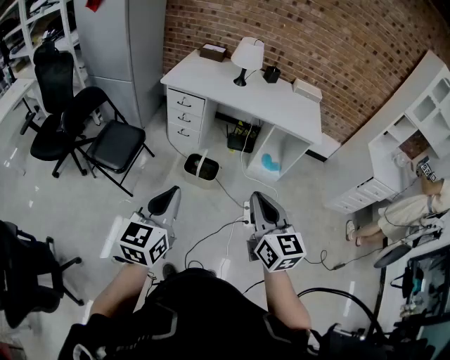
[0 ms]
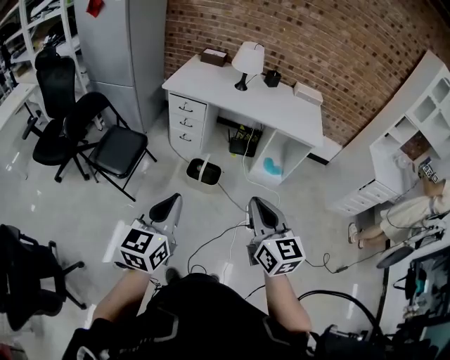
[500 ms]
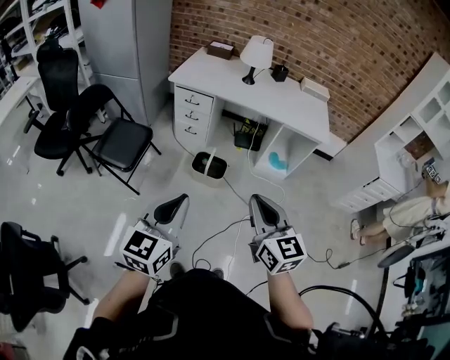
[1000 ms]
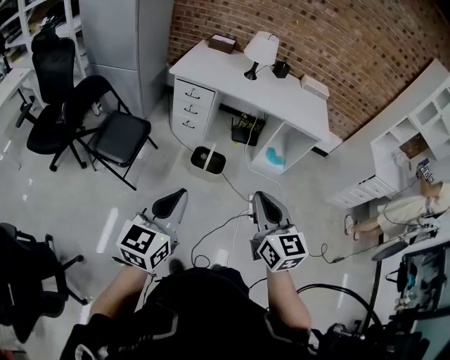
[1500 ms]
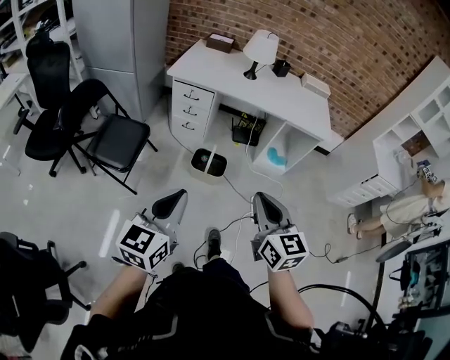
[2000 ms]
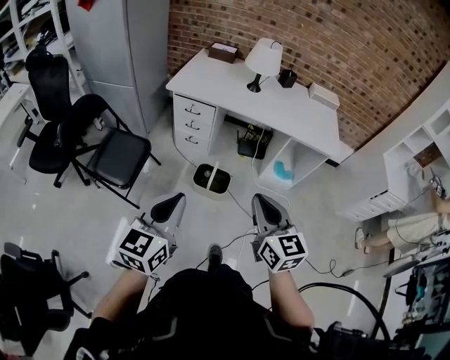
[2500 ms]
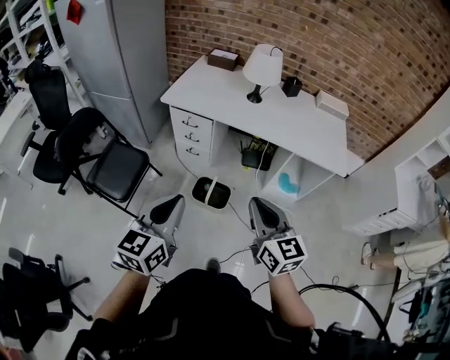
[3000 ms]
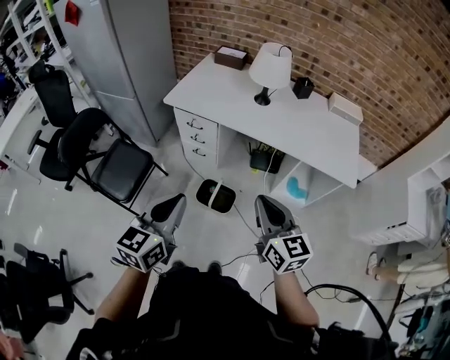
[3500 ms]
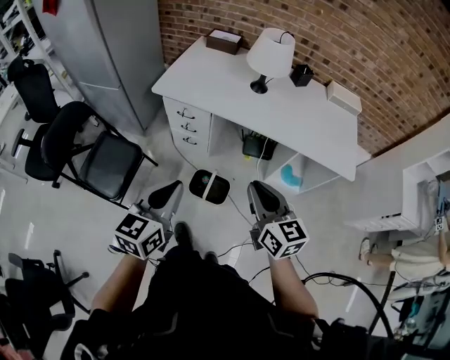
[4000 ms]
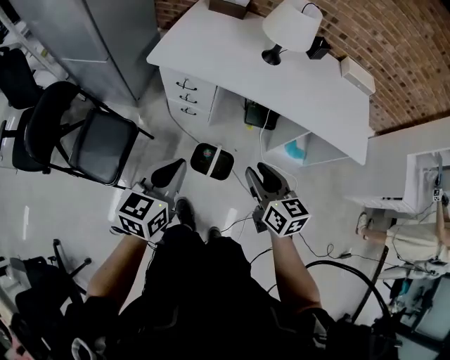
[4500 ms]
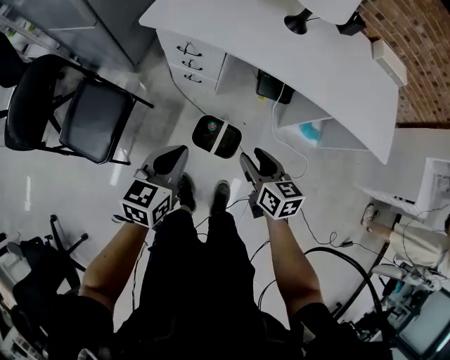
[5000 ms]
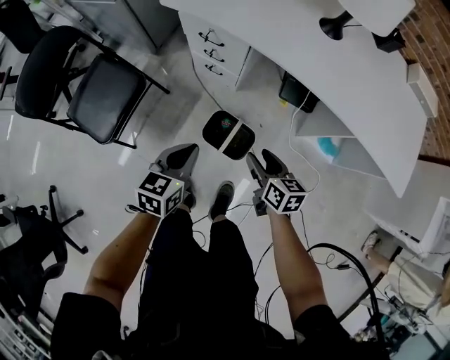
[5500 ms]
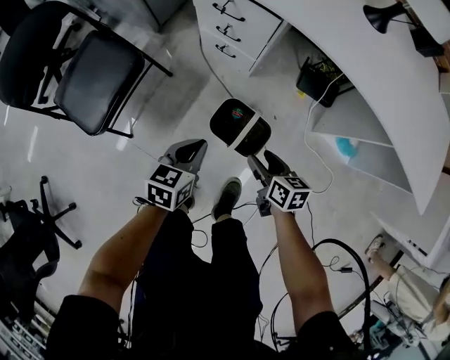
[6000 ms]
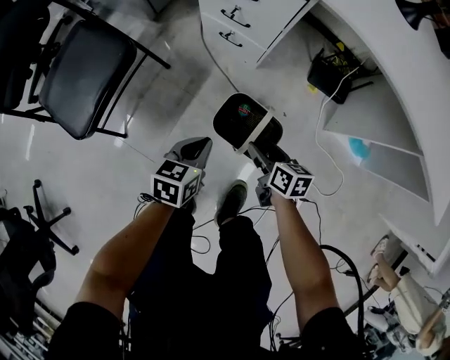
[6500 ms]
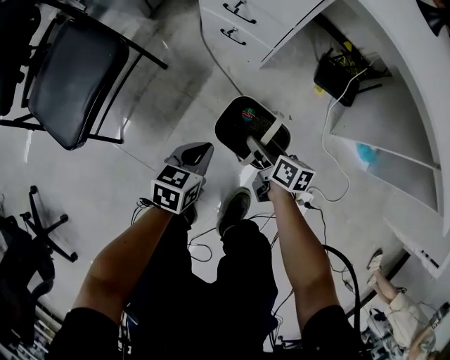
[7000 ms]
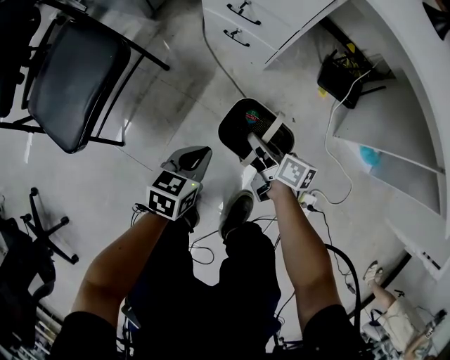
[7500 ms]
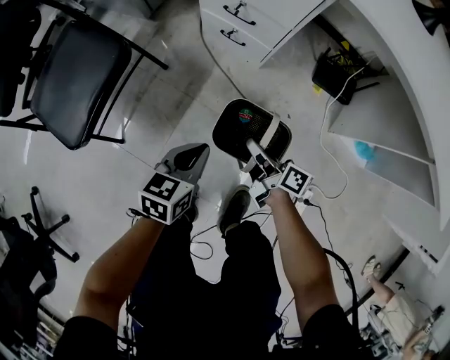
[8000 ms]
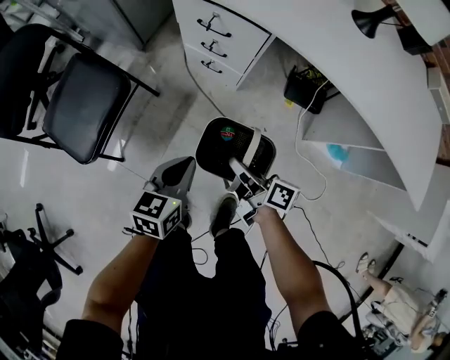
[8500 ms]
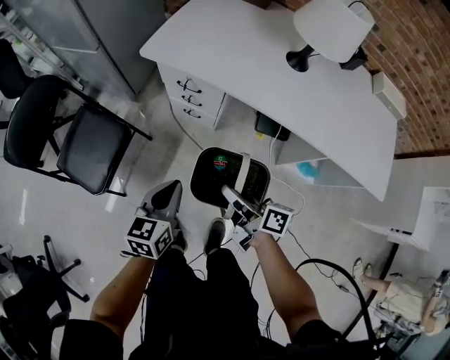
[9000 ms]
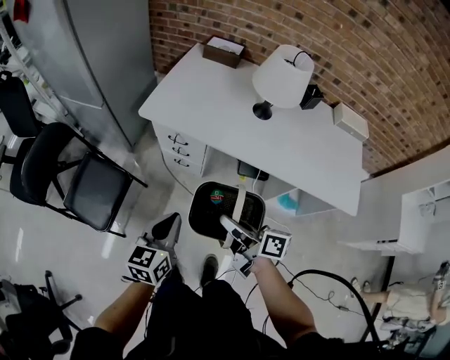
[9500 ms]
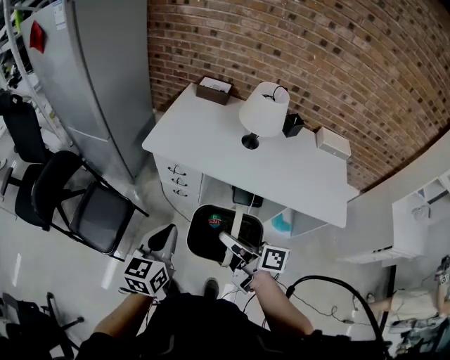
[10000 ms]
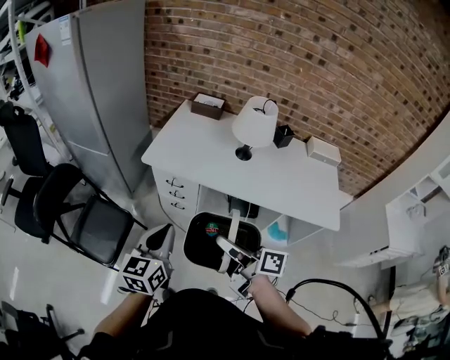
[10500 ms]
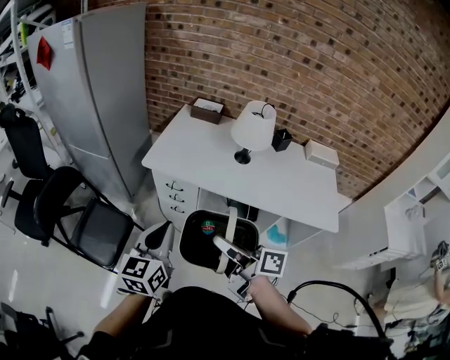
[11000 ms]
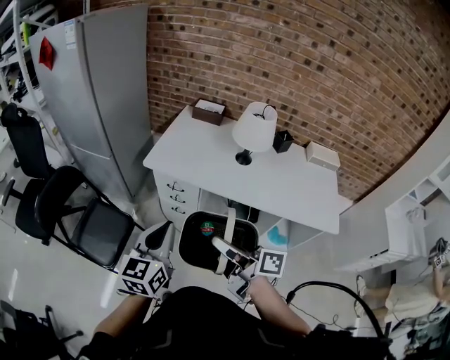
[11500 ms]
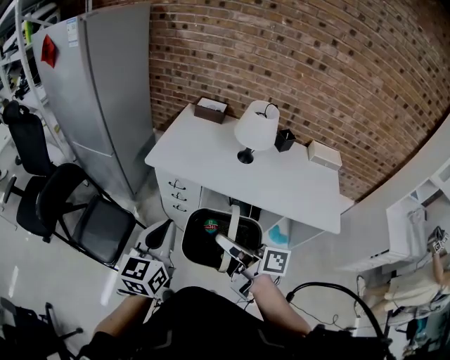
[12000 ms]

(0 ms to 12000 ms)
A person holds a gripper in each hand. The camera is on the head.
0 ms - 2000 ms: The two grippers go approximately 10 cm to the left.
2000 ms - 4000 ms: Both grippers move forward, some 35 cm.
4000 ms - 6000 ms: The grippers both shift downward by approximately 50 cm. The left gripper turns by some 30 degrees. The right gripper turns by roughly 40 degrees, and opens its fingers.
6000 ms - 8000 ms: The left gripper goes some 10 cm downward. The right gripper travels downward, to the left and forward by roughly 15 cm, rotates about 40 degrees, and closes.
8000 ms - 10000 ms: Both grippers move upward, roughly 60 cm. The left gripper rotates approximately 30 degrees.
10000 ms - 12000 ms: Both grippers travel together upward, approximately 10 cm.

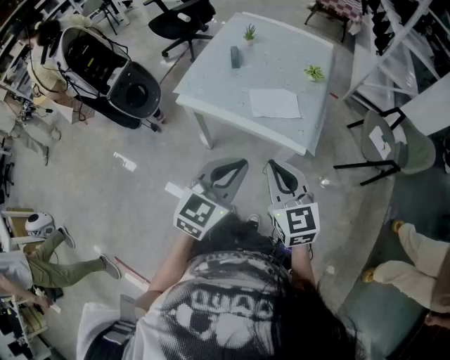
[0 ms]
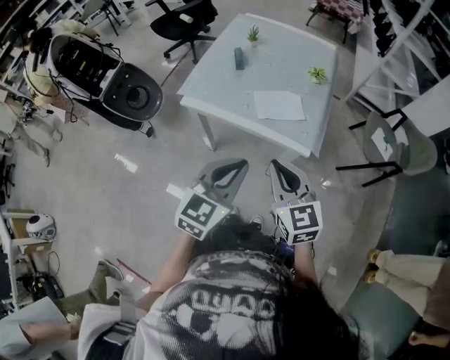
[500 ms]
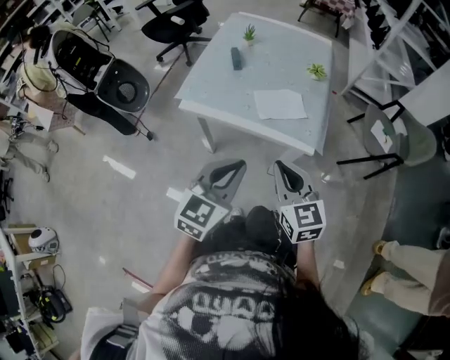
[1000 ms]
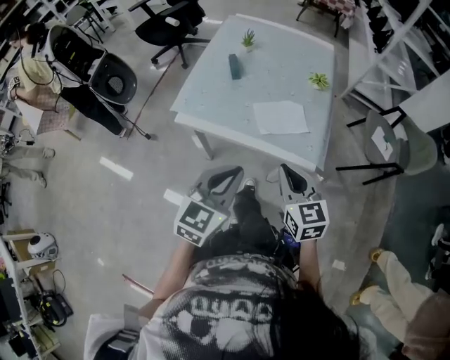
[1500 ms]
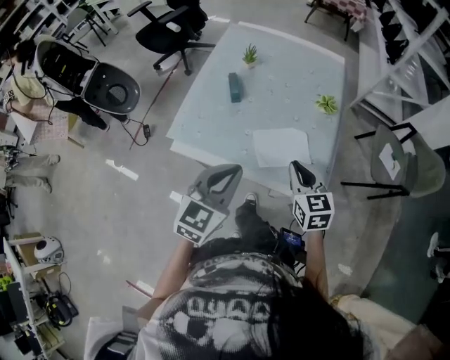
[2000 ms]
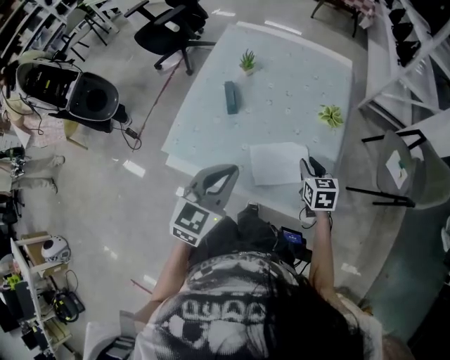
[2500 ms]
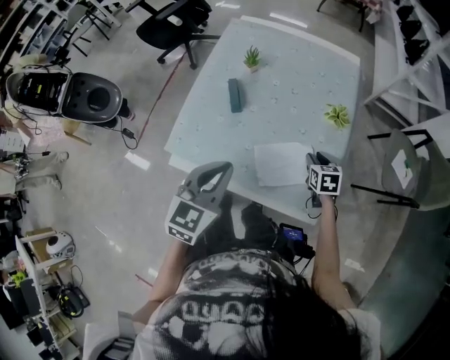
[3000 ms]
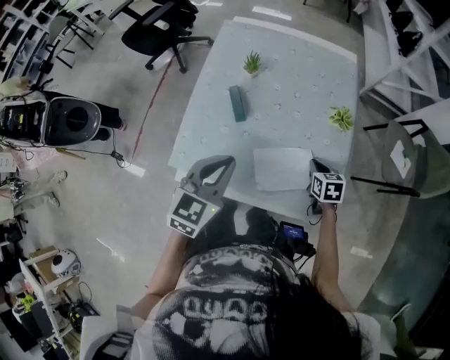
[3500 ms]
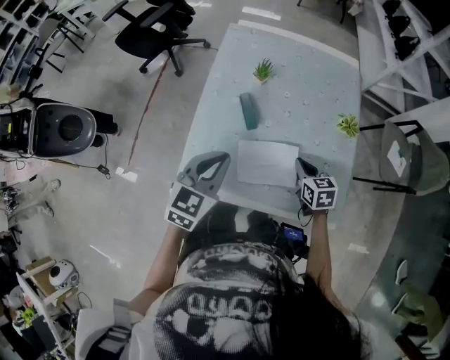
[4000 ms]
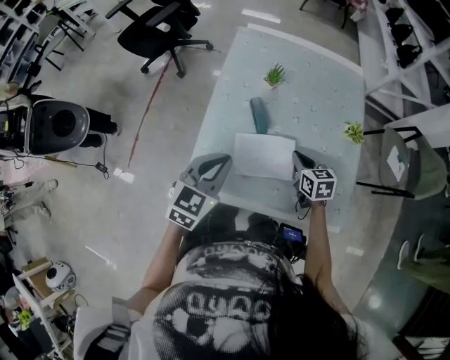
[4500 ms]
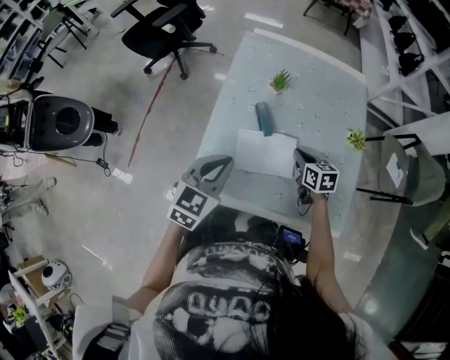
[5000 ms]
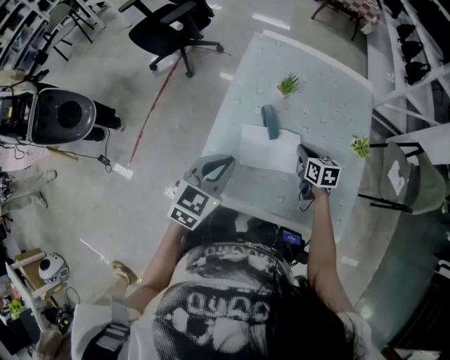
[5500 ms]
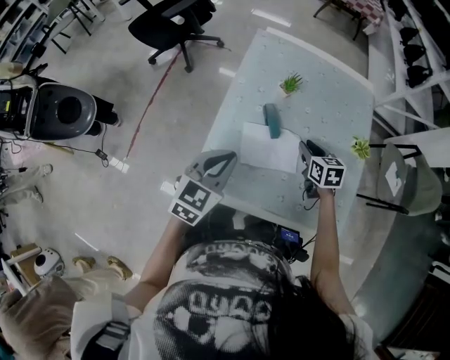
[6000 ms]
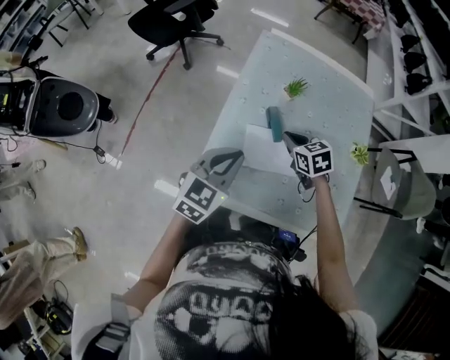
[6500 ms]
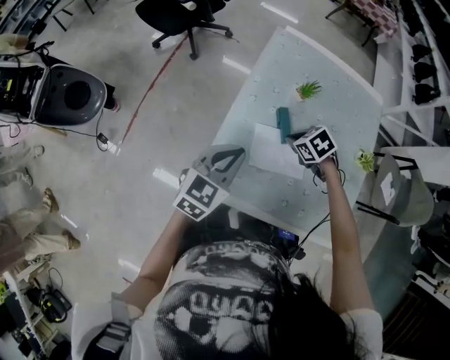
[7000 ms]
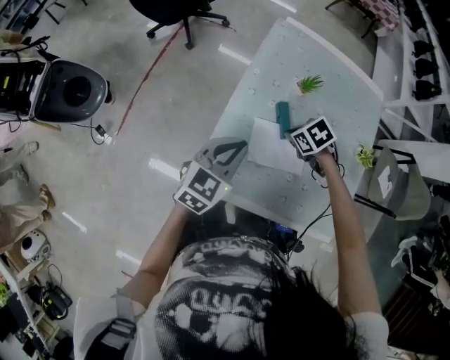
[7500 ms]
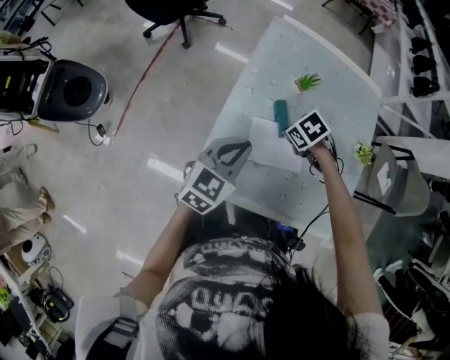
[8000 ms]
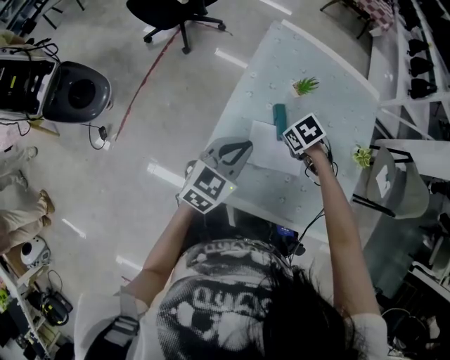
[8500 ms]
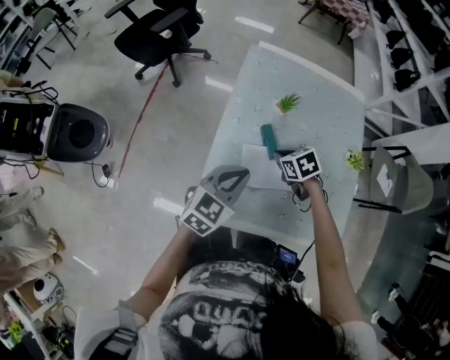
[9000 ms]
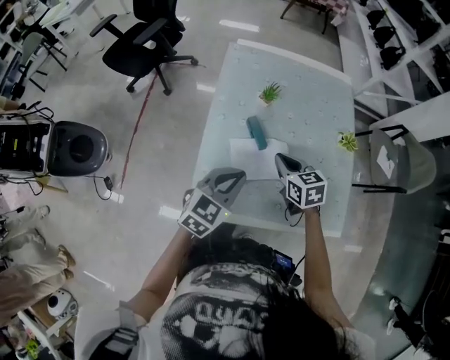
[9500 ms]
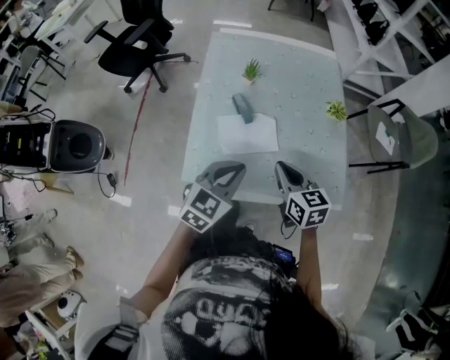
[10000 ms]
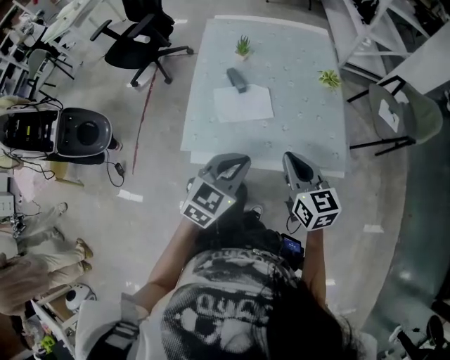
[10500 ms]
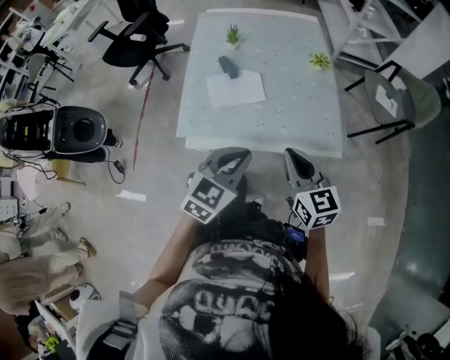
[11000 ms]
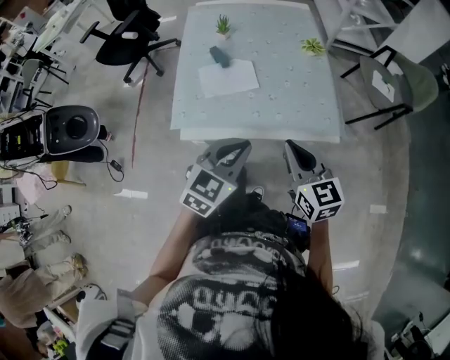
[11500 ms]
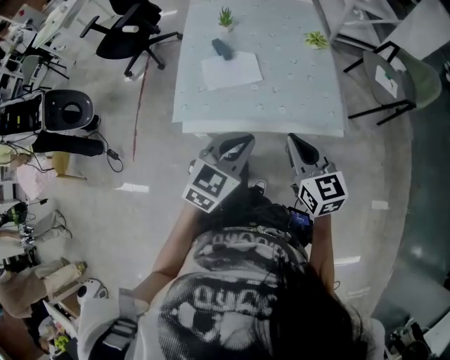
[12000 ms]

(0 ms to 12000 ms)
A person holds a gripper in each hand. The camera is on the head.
0 ms - 2000 ms: The left gripper shifts roughly 20 cm forward, while the right gripper goes roughly 30 cm forward and downward.
2000 ms - 4000 ms: The left gripper shifts roughly 25 cm forward and to the left; the right gripper goes approximately 20 cm forward, downward and to the left, and opens, then closes once more.
4000 ms - 6000 ms: The left gripper shifts approximately 5 cm to the left. Meanwhile the right gripper is displaced forward and to the left by some 10 cm, and opens its fingers.
6000 ms - 8000 ms: The right gripper moves some 10 cm, tilts its fingers about 30 degrees downward, and closes.
8000 ms - 10000 ms: The left gripper moves about 15 cm. Meanwhile the right gripper ends up approximately 25 cm from where it was, and tips its fingers upward by some 50 degrees.
10000 ms - 12000 ms: The grippers both shift backward and to the right by about 20 cm.

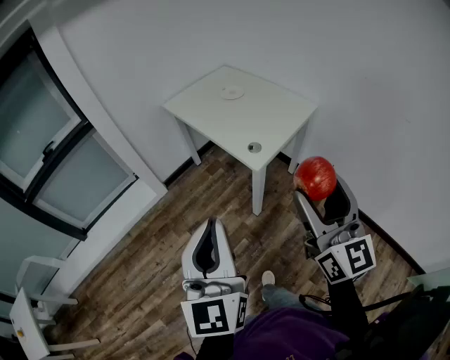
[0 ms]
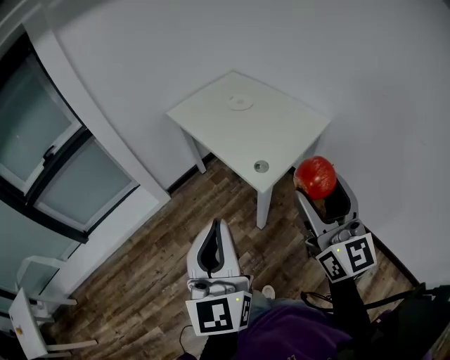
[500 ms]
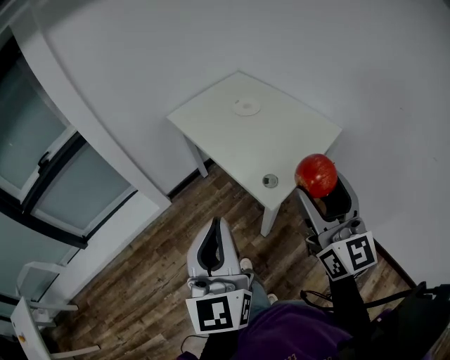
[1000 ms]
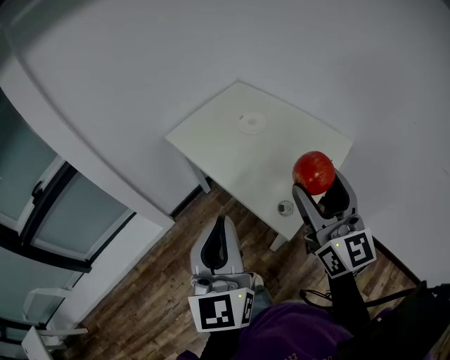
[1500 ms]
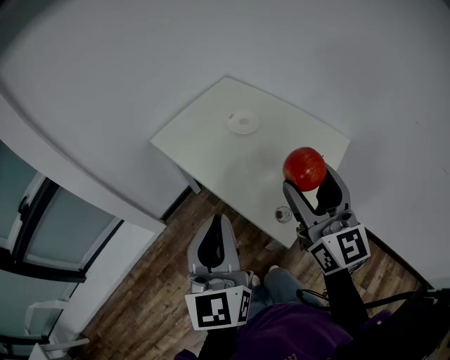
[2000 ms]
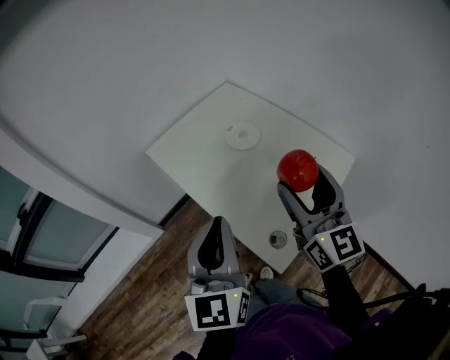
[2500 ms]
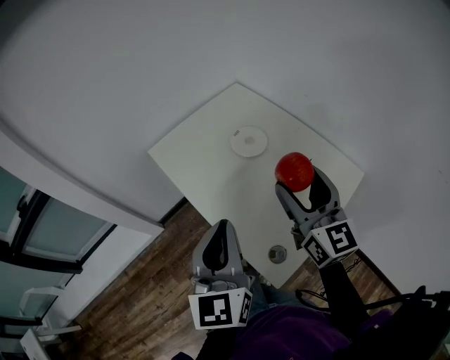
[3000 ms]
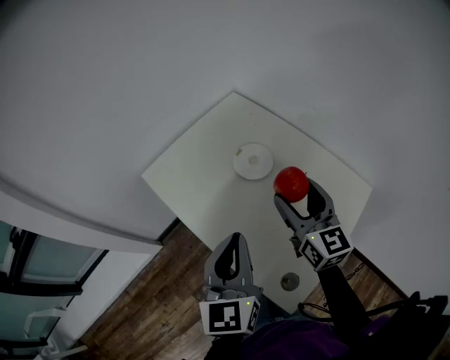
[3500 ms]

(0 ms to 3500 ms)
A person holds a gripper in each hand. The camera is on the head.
0 ms - 2000 ms: The two grippers go some 35 cm forward.
2000 ms - 3500 ms: The right gripper heads forward and downward, covering some 30 cm. Meanwhile the left gripper shifts about 20 cm forward.
